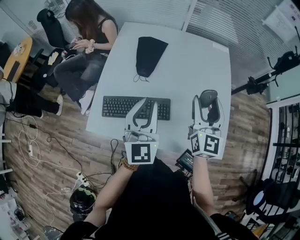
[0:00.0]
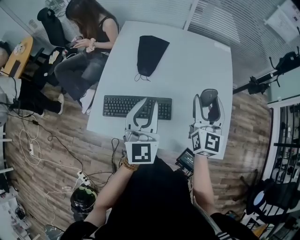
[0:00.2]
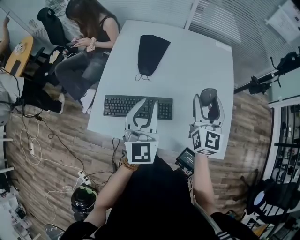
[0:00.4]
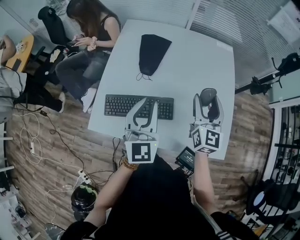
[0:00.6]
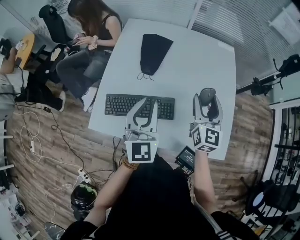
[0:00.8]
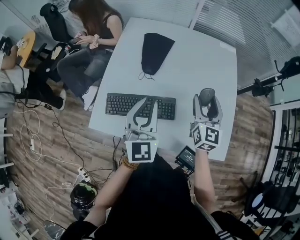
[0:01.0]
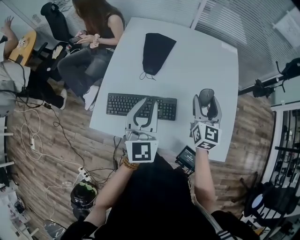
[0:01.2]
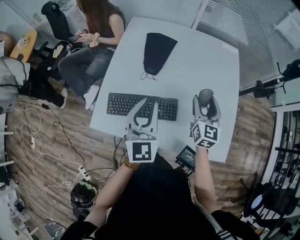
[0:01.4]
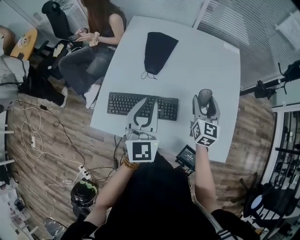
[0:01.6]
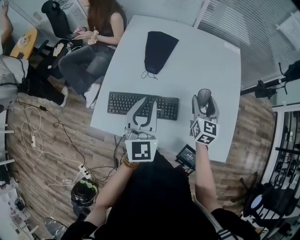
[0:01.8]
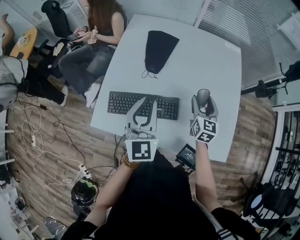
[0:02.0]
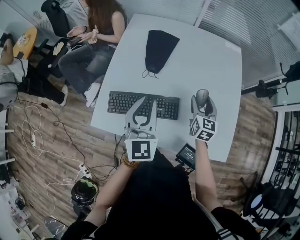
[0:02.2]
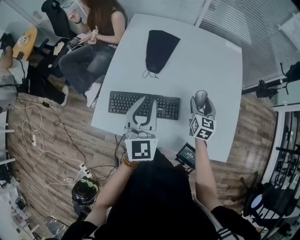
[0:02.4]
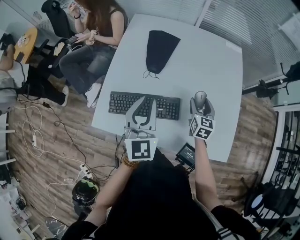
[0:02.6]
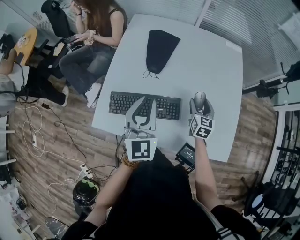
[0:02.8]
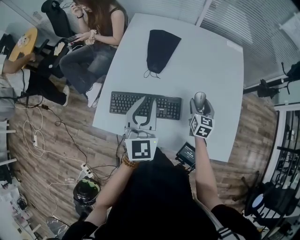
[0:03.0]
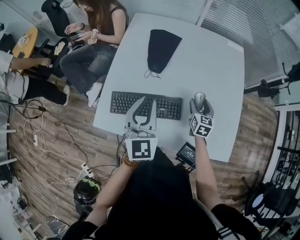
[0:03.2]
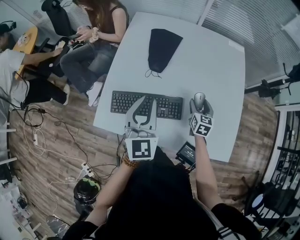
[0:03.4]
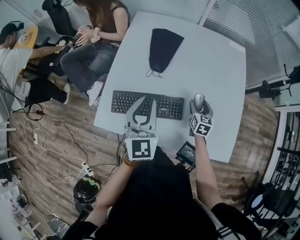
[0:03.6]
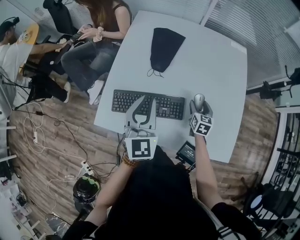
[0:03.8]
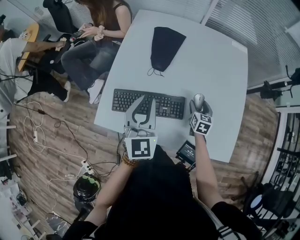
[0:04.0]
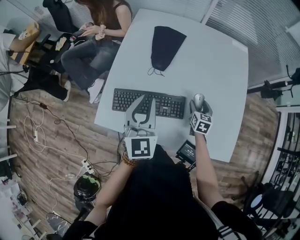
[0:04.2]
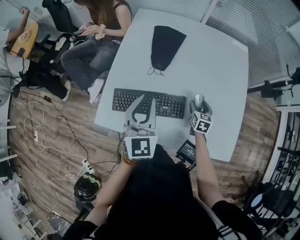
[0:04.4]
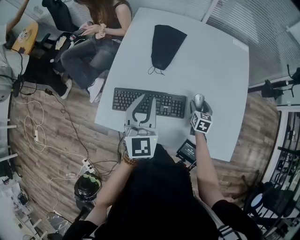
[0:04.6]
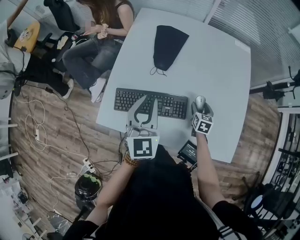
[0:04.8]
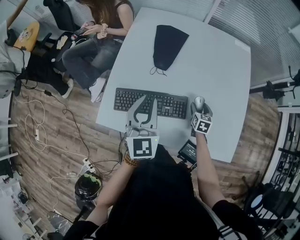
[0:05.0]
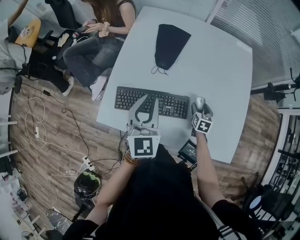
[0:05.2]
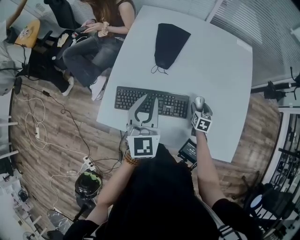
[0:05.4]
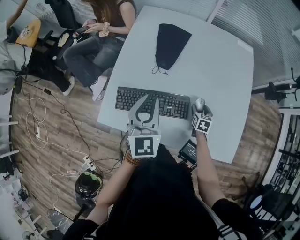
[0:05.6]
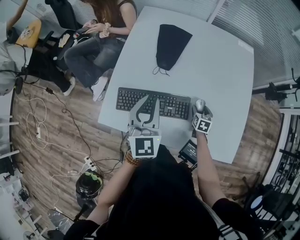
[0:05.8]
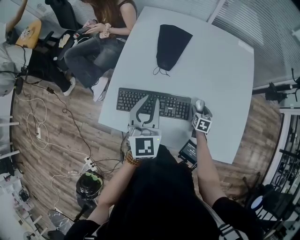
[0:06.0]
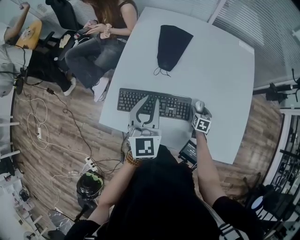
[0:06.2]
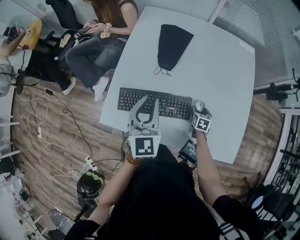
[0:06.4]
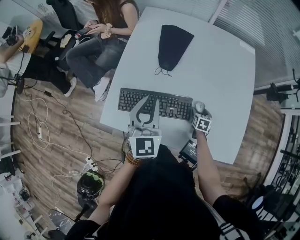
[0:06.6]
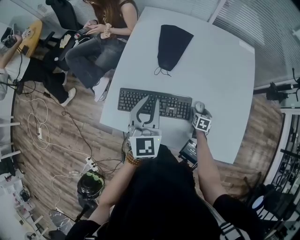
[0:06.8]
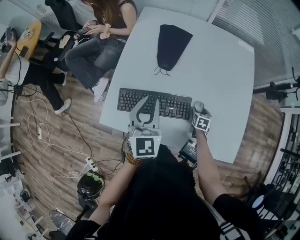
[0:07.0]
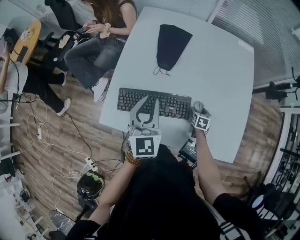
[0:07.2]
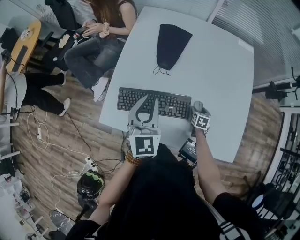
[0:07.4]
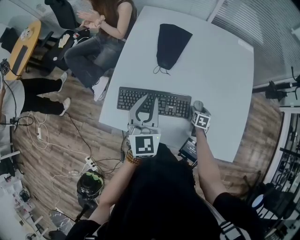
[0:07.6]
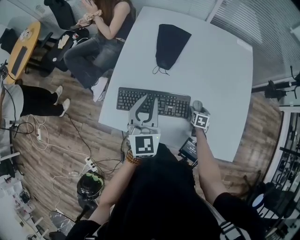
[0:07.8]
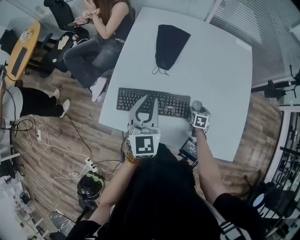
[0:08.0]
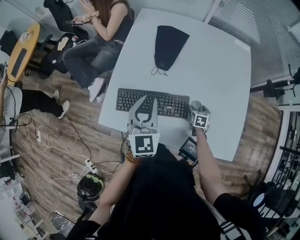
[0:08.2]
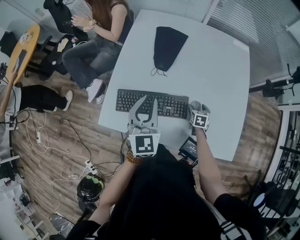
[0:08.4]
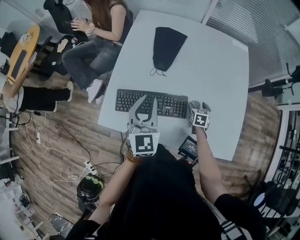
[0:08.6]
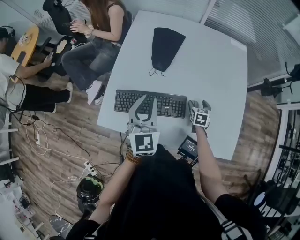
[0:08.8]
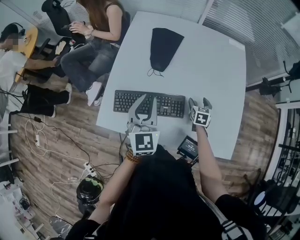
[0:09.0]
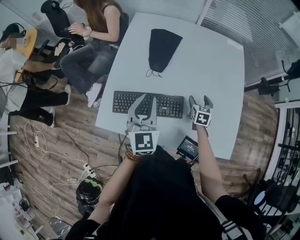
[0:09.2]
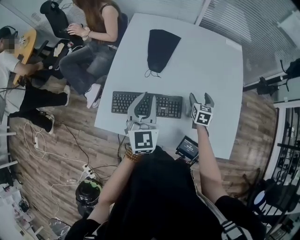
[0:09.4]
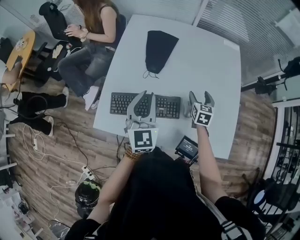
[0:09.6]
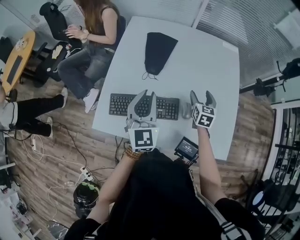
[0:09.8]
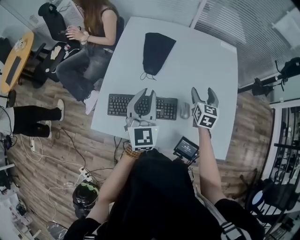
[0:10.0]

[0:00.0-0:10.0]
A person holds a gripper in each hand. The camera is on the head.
0:00.0 to 0:01.4: The right gripper shifts approximately 10 cm downward.
0:01.4 to 0:02.8: The right gripper shifts roughly 15 cm downward.
0:02.8 to 0:04.2: The right gripper goes some 10 cm downward.
0:04.2 to 0:05.8: The right gripper shifts approximately 10 cm downward.
0:05.8 to 0:07.2: The grippers stay close to where they were, moving slightly.
0:07.2 to 0:08.6: The right gripper ends up about 5 cm from where it was.
0:08.6 to 0:10.0: The right gripper is displaced upward by roughly 20 cm, and changes its angle by roughly 20 degrees.

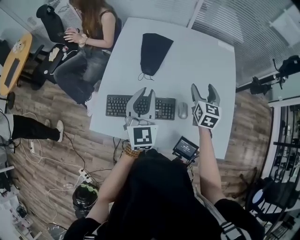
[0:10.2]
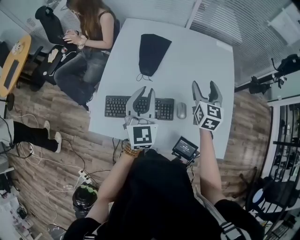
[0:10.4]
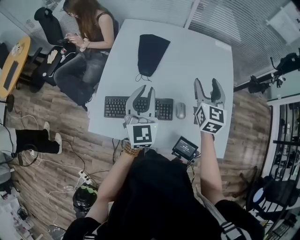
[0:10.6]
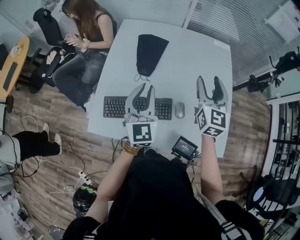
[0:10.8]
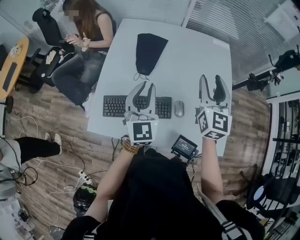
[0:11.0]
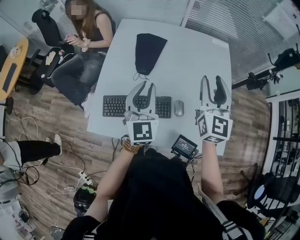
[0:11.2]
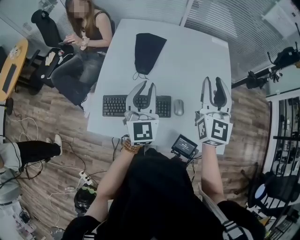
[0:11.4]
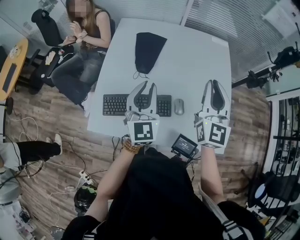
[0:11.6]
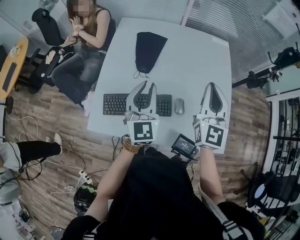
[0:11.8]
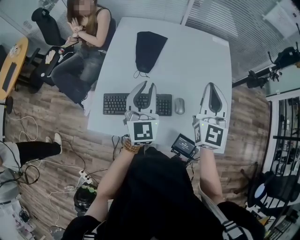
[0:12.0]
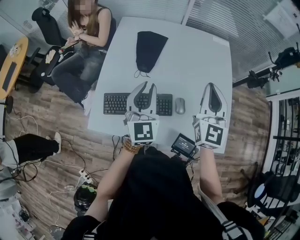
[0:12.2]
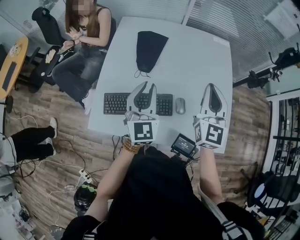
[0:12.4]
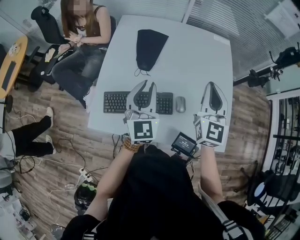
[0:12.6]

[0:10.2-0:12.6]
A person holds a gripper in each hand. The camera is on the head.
0:10.2 to 0:11.4: The right gripper travels upward by approximately 15 cm, turns by roughly 30 degrees, and closes its fingers.
0:11.4 to 0:12.6: The right gripper closes.

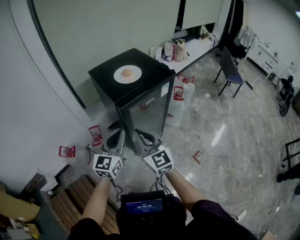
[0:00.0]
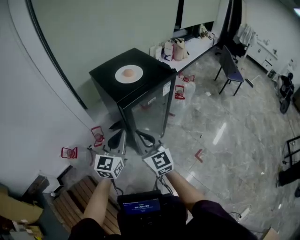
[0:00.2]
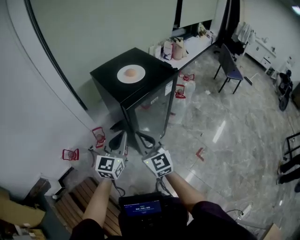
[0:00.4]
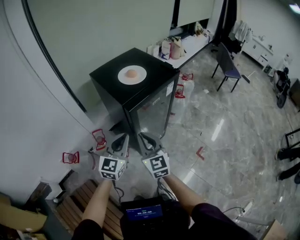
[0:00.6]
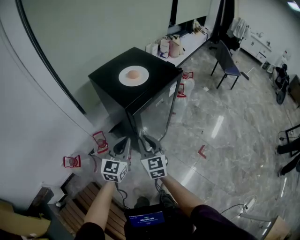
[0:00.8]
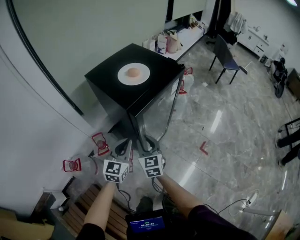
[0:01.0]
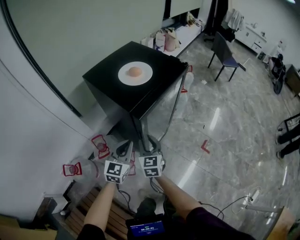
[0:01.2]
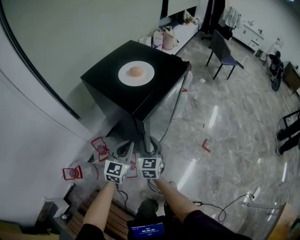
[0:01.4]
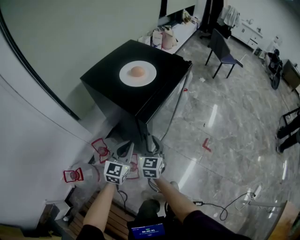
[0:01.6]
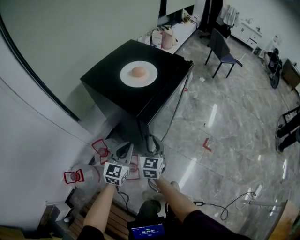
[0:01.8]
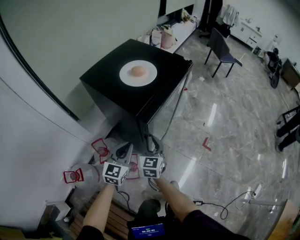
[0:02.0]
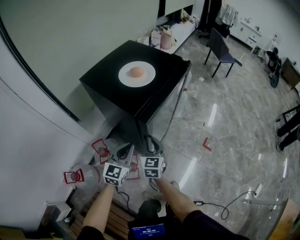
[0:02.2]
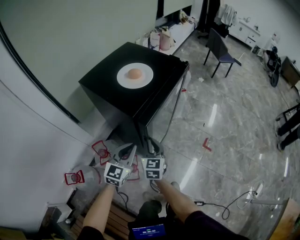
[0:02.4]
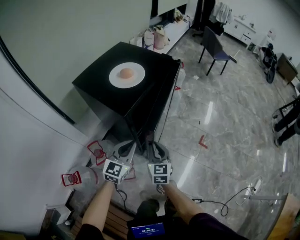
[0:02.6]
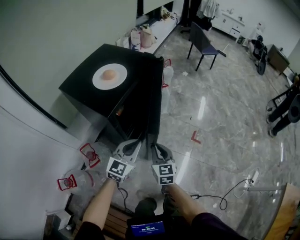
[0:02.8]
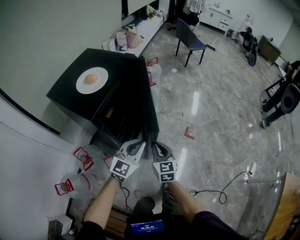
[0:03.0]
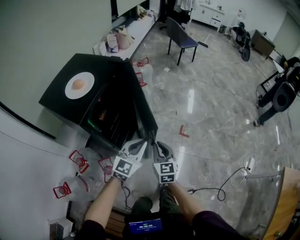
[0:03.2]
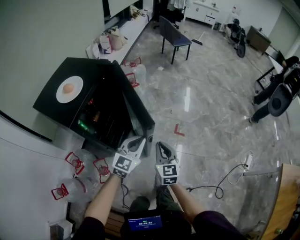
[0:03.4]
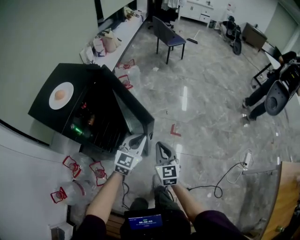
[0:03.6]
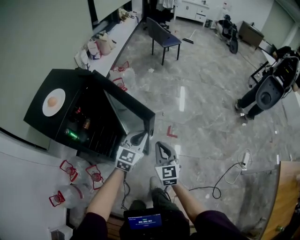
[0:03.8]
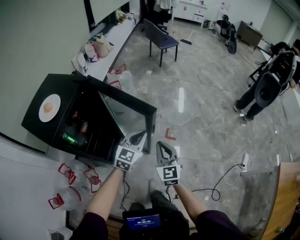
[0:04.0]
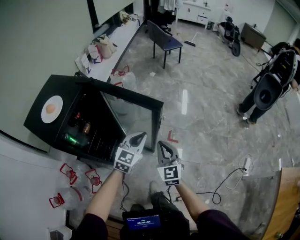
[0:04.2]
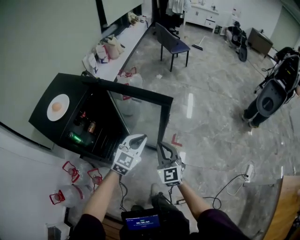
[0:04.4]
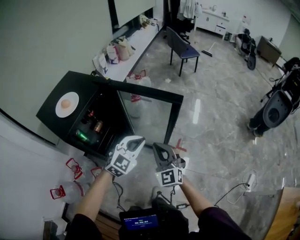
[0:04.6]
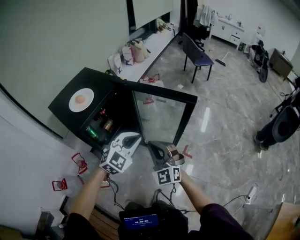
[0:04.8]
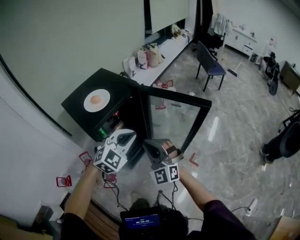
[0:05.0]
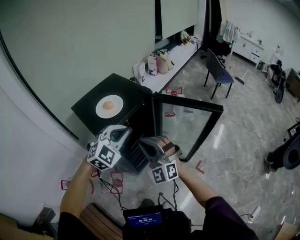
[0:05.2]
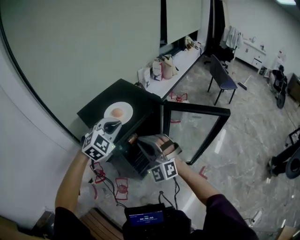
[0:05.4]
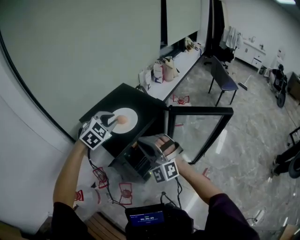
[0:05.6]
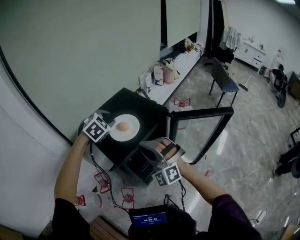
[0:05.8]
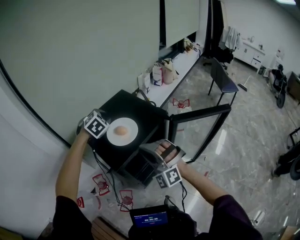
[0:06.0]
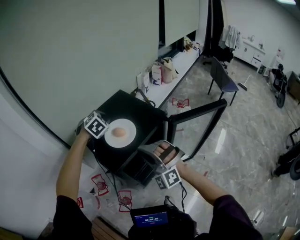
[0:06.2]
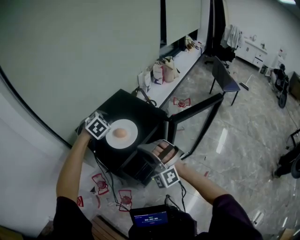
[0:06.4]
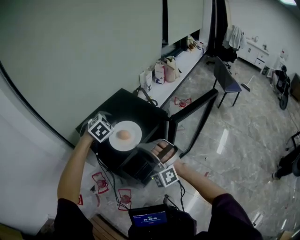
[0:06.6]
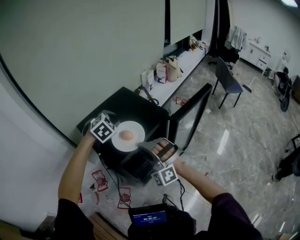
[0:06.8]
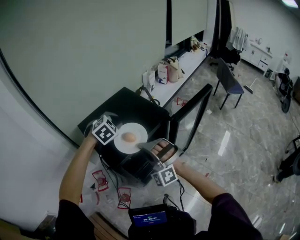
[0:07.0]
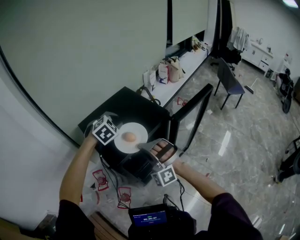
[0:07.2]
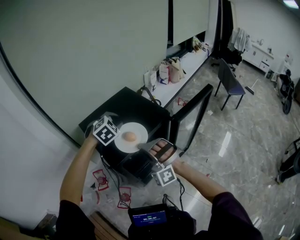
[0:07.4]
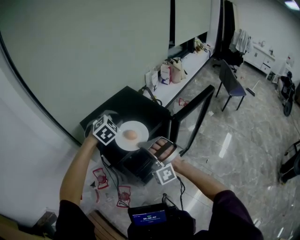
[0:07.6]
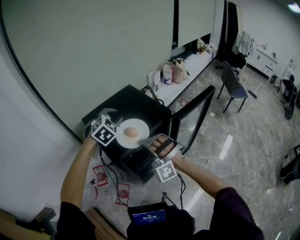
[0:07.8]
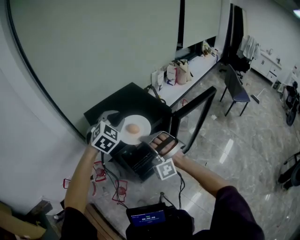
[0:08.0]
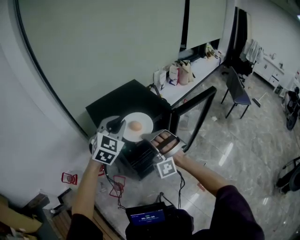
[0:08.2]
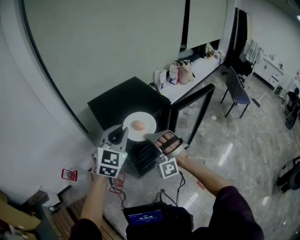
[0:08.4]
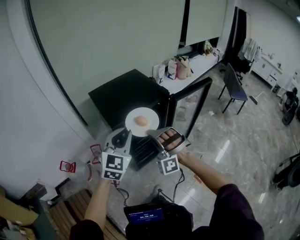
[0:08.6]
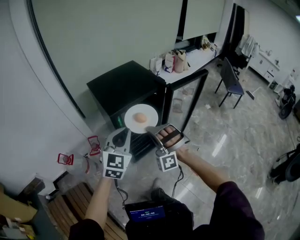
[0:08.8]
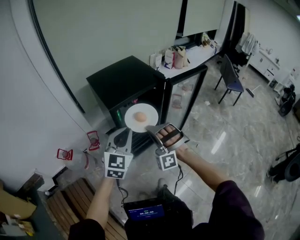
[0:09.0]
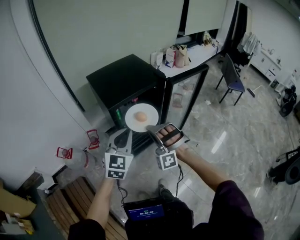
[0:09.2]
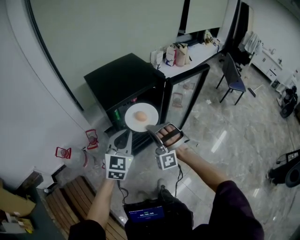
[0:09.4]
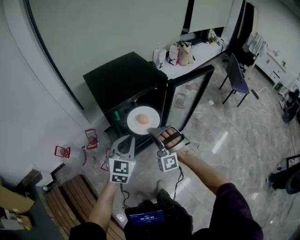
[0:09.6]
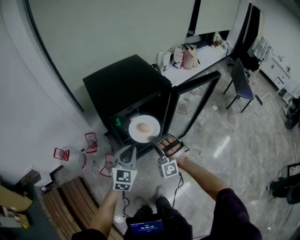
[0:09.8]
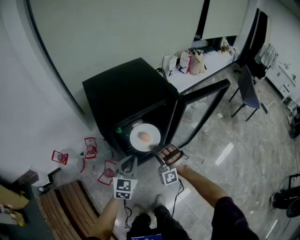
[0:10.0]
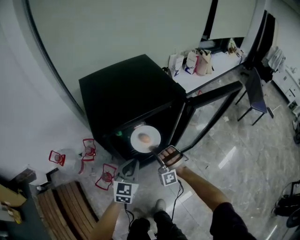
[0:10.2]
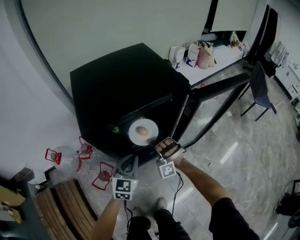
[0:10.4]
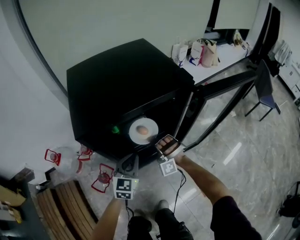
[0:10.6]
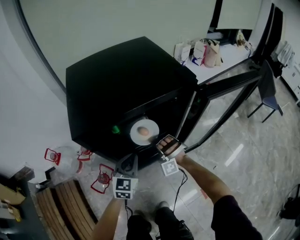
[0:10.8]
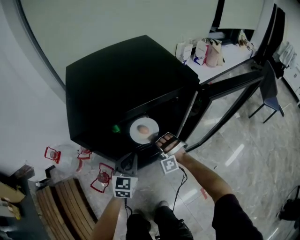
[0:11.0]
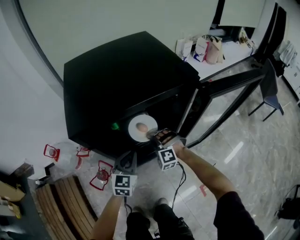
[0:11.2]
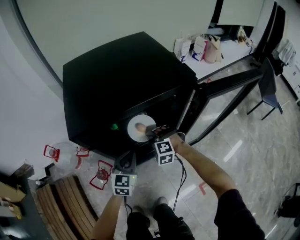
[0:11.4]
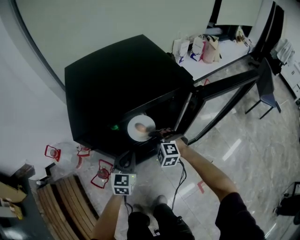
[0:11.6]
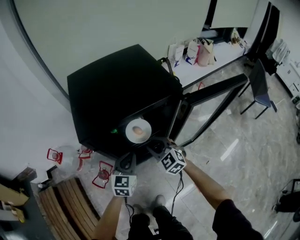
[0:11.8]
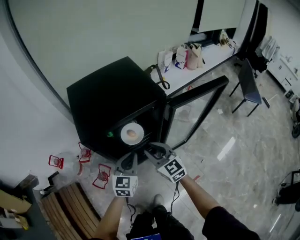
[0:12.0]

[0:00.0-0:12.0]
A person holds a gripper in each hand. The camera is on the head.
0:00.0 to 0:01.6: The grippers both shift downward by approximately 20 cm. The right gripper rotates roughly 50 degrees, while the left gripper turns by some 20 degrees.
0:01.6 to 0:03.0: The grippers both shift to the right by roughly 20 cm. The left gripper rotates approximately 30 degrees.
0:03.0 to 0:04.4: The right gripper is displaced to the right, forward and upward by roughly 25 cm, and swivels roughly 20 degrees. Meanwhile the left gripper shifts some 25 cm to the right and forward.
0:04.4 to 0:06.0: Both grippers are carried about 50 cm. The left gripper tips its fingers downward by roughly 30 degrees, and opens up. Meanwhile the right gripper swivels roughly 70 degrees.
0:06.0 to 0:07.6: The left gripper moves about 5 cm.
0:07.6 to 0:09.0: The right gripper heads backward, covering approximately 20 cm. Meanwhile the left gripper travels backward by some 35 cm, and tilts its fingers roughly 30 degrees upward.
0:09.0 to 0:10.4: The two grippers go about 35 cm downward and forward.
0:10.4 to 0:12.0: The left gripper shifts roughly 10 cm upward. Meanwhile the right gripper heads upward and backward, covering about 15 cm, and rotates around the line of its fingers by some 90 degrees, clockwise from behind.
